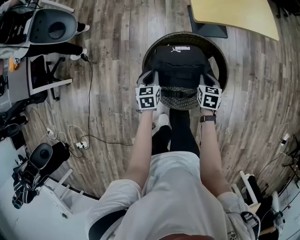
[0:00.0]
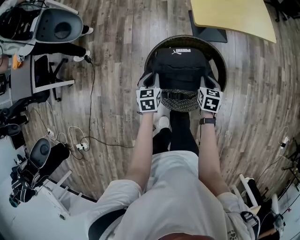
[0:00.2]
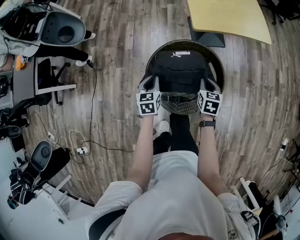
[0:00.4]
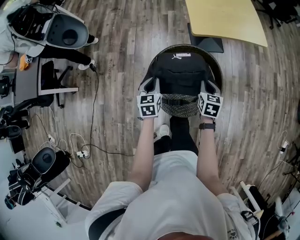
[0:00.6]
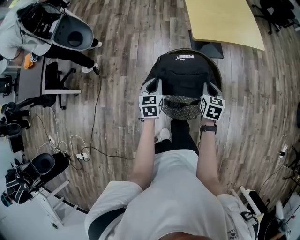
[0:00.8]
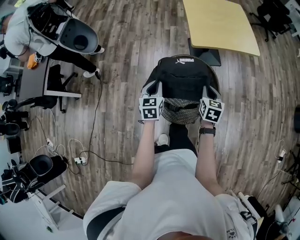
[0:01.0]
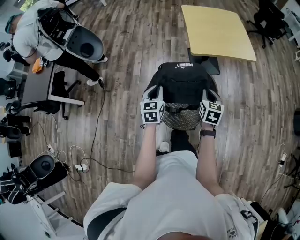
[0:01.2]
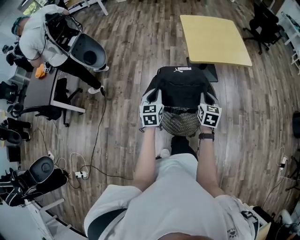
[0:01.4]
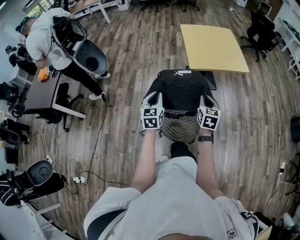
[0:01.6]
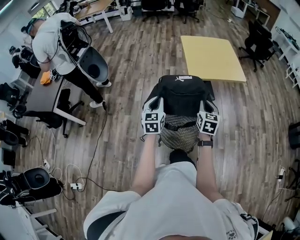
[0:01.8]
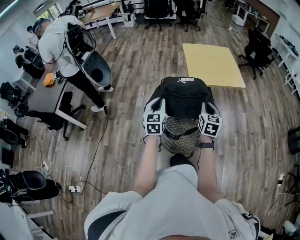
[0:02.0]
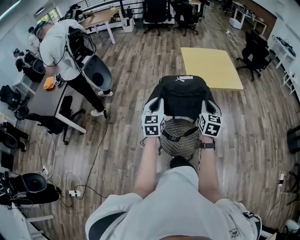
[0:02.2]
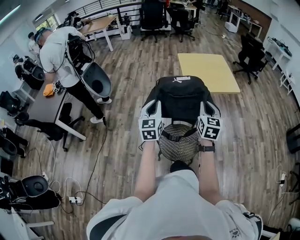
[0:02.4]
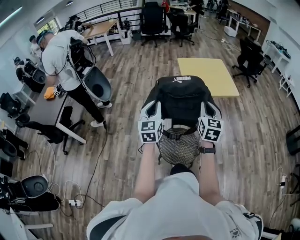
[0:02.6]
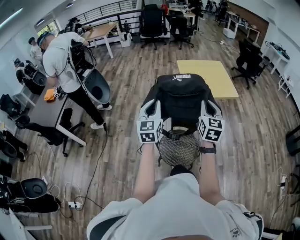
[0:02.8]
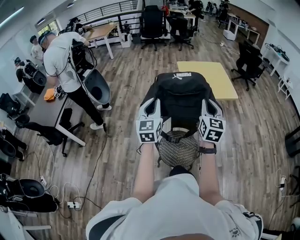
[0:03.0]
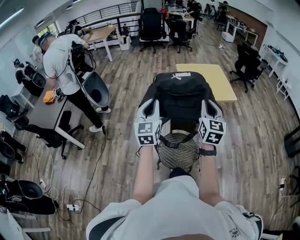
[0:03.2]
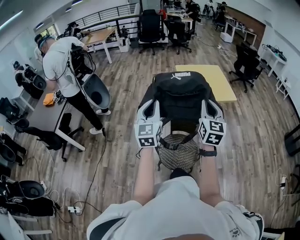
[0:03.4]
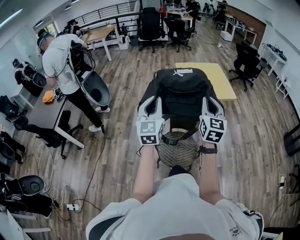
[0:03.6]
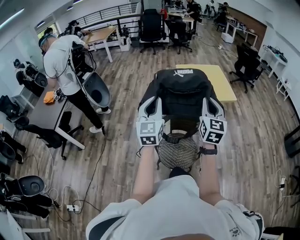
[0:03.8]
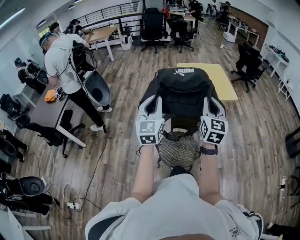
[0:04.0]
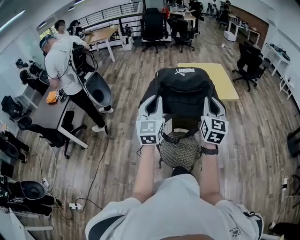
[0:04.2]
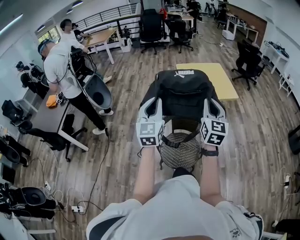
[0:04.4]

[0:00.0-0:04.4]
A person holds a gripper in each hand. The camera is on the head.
0:00.0 to 0:01.4: Both grippers travel together upward, some 25 cm. The right gripper changes its angle by roughly 20 degrees; the left gripper swivels about 20 degrees.
0:01.4 to 0:03.0: Both grippers travel together upward, approximately 25 cm. The left gripper turns by about 30 degrees, while the right gripper rotates approximately 30 degrees.
0:03.0 to 0:04.4: The left gripper moves approximately 5 cm.

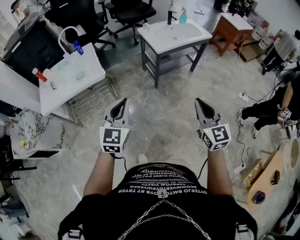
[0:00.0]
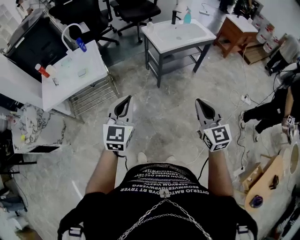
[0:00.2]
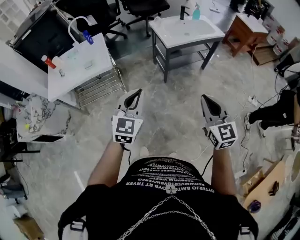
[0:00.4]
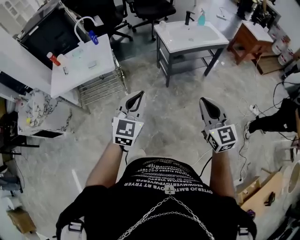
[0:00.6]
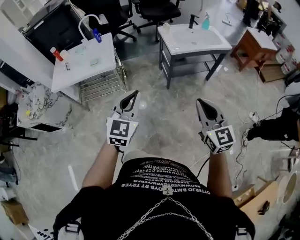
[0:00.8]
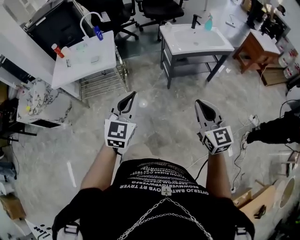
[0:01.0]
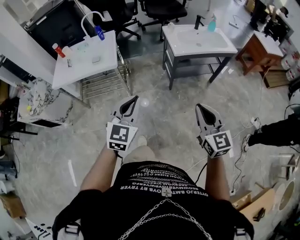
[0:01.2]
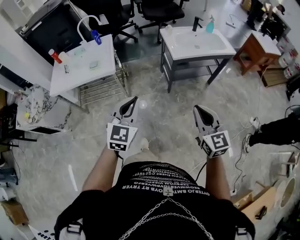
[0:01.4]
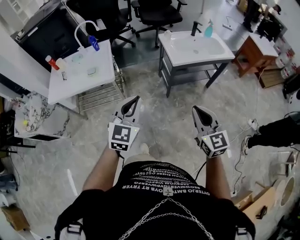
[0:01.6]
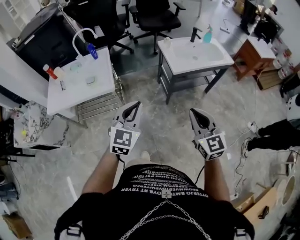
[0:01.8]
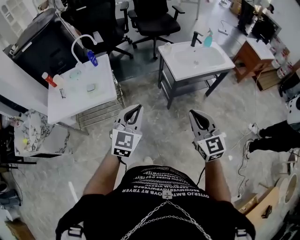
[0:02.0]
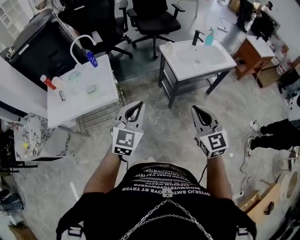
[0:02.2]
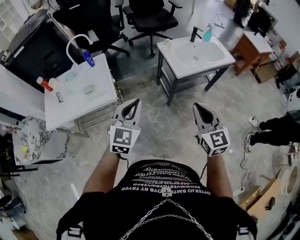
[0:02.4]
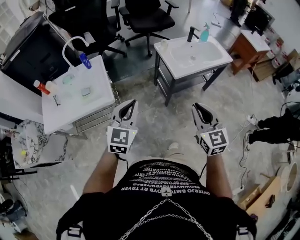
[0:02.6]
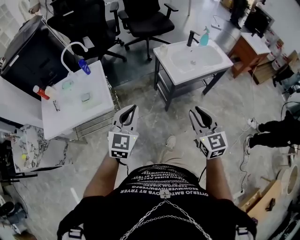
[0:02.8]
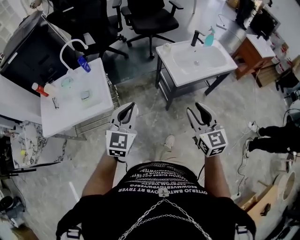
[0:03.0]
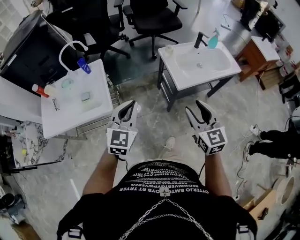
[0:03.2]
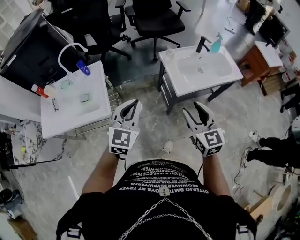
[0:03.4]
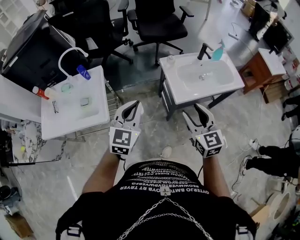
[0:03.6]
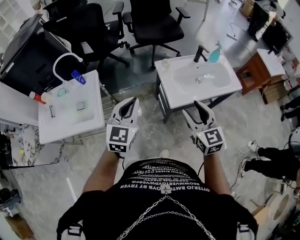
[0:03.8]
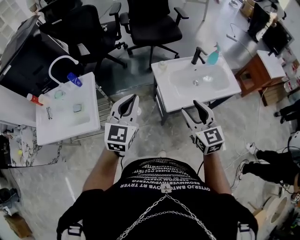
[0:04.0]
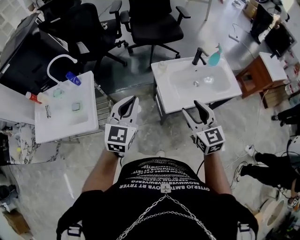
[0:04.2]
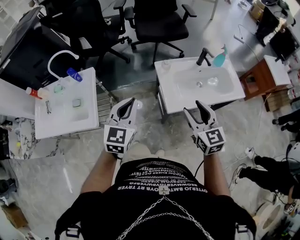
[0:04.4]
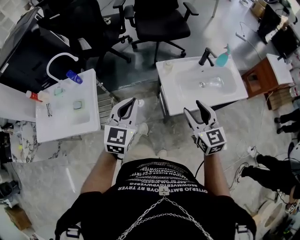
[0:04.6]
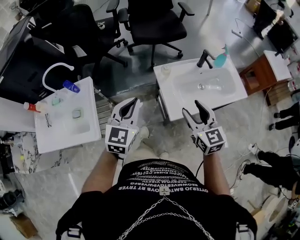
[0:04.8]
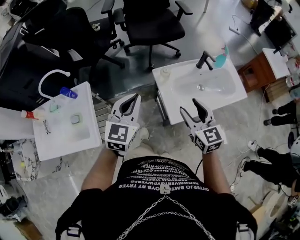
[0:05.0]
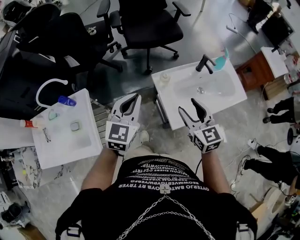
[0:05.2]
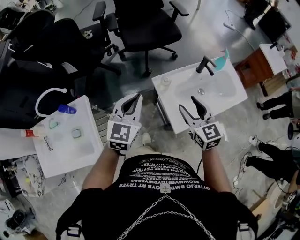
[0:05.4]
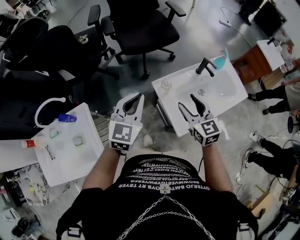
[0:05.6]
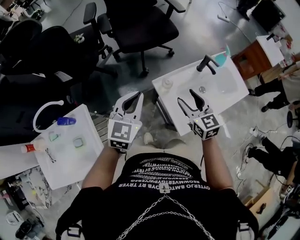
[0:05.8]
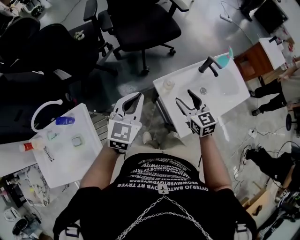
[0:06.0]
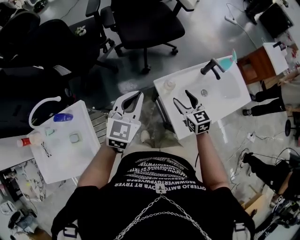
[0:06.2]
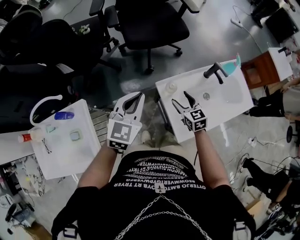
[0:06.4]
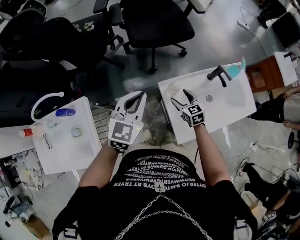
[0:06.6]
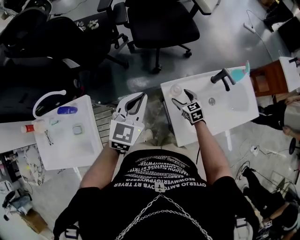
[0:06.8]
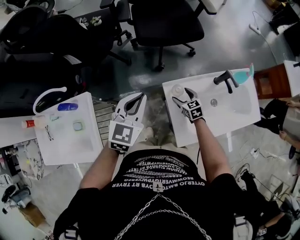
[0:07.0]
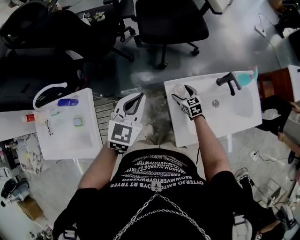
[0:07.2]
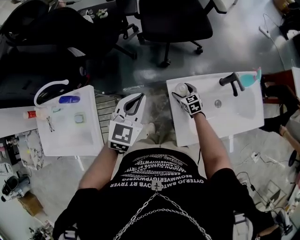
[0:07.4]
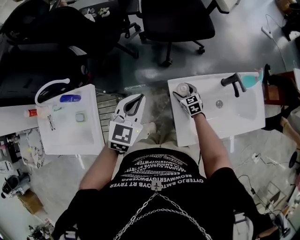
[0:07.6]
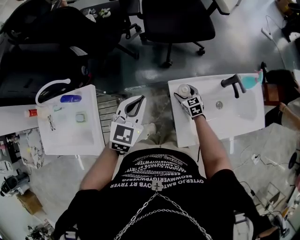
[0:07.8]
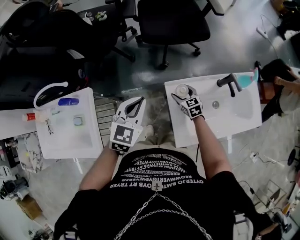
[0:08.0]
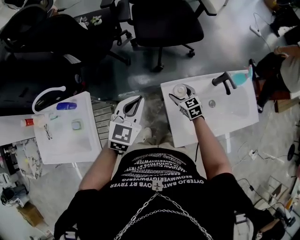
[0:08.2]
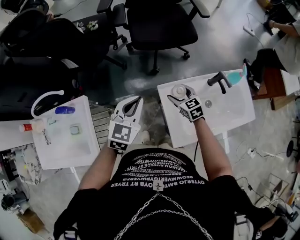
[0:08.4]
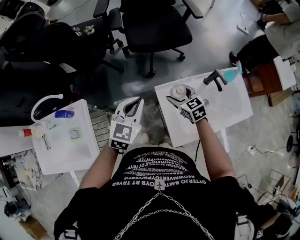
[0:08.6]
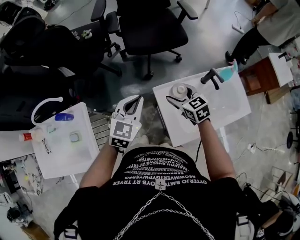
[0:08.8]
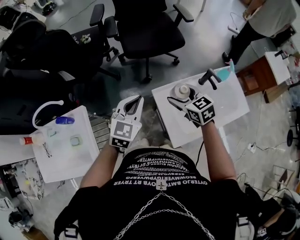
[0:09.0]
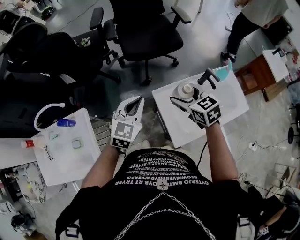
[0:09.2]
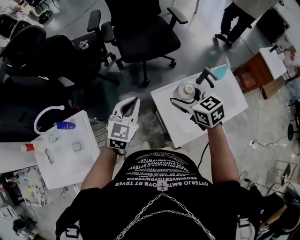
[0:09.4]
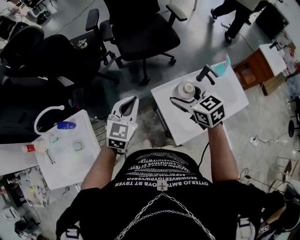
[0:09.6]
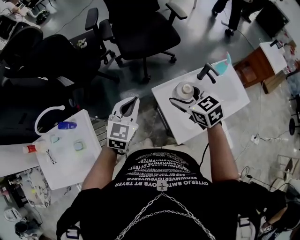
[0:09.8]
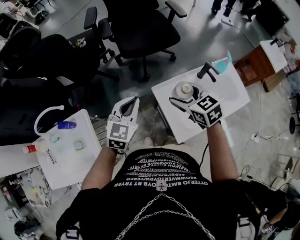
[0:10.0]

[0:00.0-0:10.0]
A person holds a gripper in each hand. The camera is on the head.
0:00.0 to 0:01.4: The left gripper moves to the right, about 10 cm. Meanwhile the right gripper travels forward by approximately 10 cm.
0:01.4 to 0:02.8: The left gripper is displaced forward by approximately 25 cm; the right gripper heads forward and to the left, covering approximately 25 cm.
0:02.8 to 0:04.2: The two grippers go about 30 cm forward and to the right.
0:04.2 to 0:05.8: Both grippers move forward, about 30 cm.
0:05.8 to 0:07.2: The left gripper moves forward and downward, approximately 10 cm; the right gripper travels downward and forward by roughly 30 cm, and rotates roughly 30 degrees.
0:07.2 to 0:08.6: The right gripper is displaced upward by approximately 15 cm.
0:08.6 to 0:10.0: The right gripper shifts some 15 cm upward.

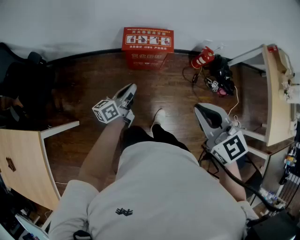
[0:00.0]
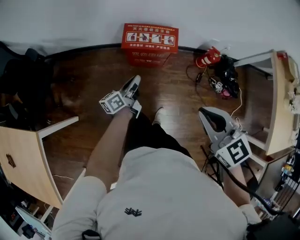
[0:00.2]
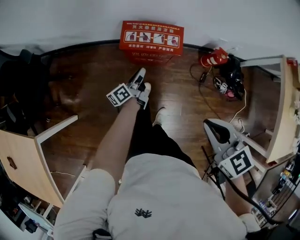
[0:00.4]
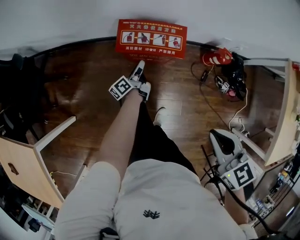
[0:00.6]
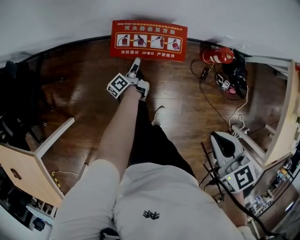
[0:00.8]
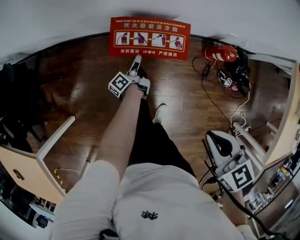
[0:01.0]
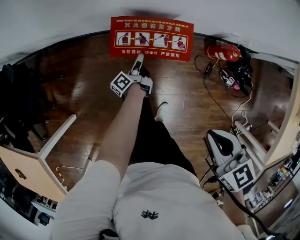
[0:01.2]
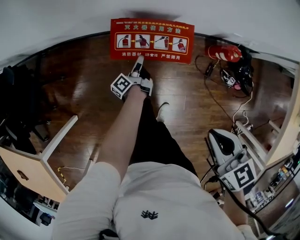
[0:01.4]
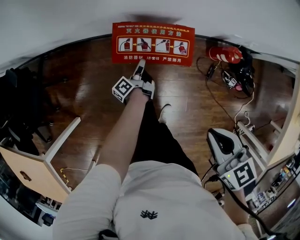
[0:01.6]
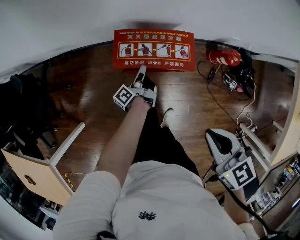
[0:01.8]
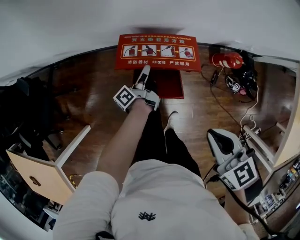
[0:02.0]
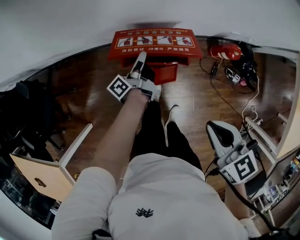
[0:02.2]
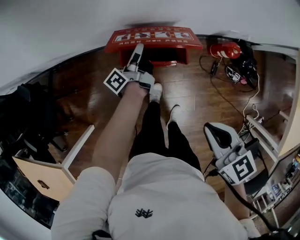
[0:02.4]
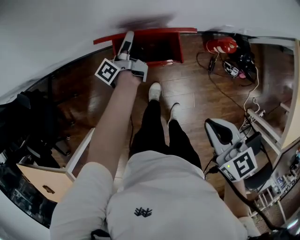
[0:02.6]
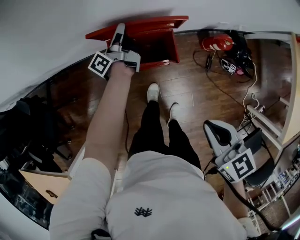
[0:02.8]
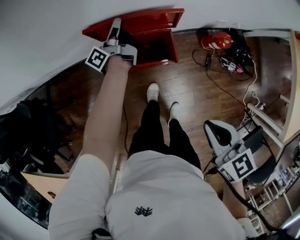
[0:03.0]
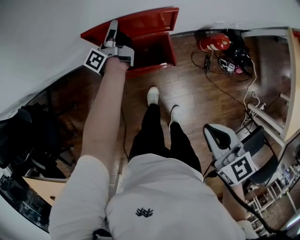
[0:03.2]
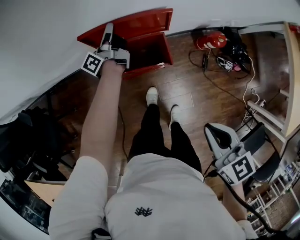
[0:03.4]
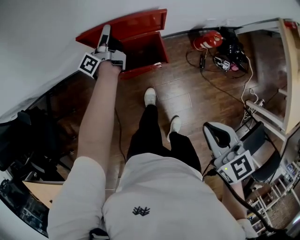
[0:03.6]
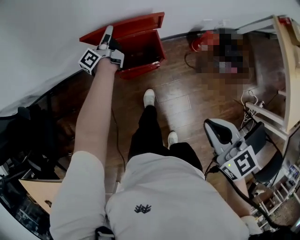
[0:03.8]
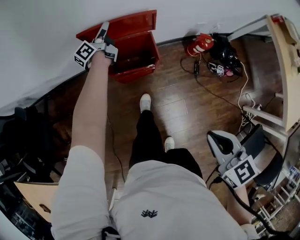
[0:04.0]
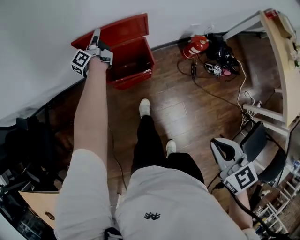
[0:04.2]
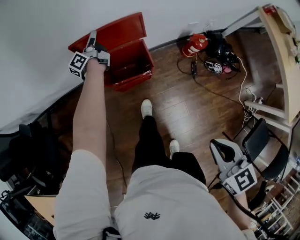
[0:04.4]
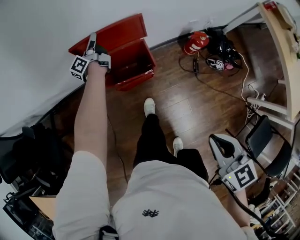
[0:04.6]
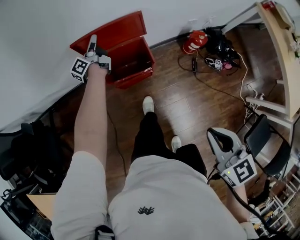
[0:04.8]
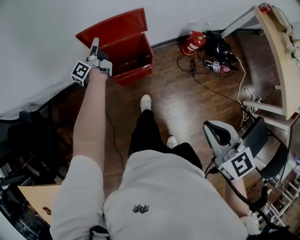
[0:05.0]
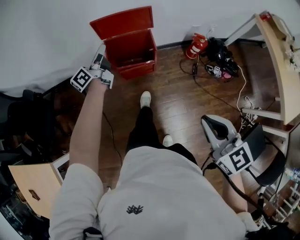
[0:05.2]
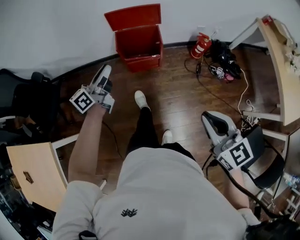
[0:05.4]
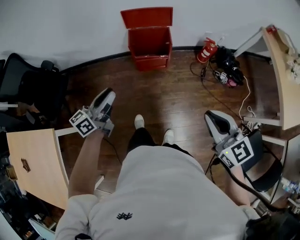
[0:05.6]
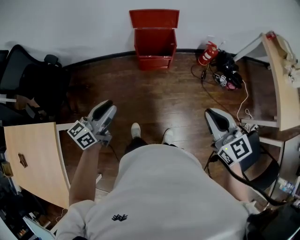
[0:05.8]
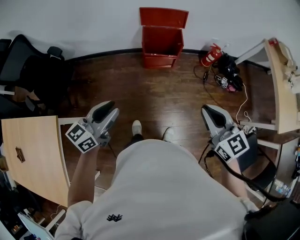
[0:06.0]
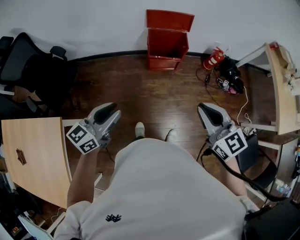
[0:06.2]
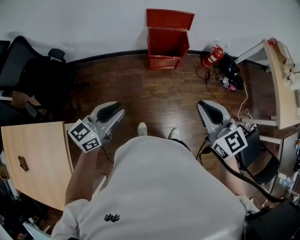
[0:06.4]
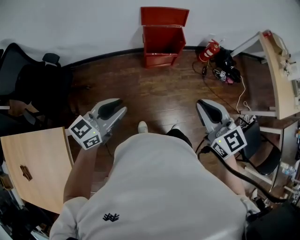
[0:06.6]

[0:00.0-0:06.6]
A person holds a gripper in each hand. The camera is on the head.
0:00.0 to 0:01.6: The left gripper goes some 35 cm downward and forward, rotates about 50 degrees, and opens its fingers, while the right gripper shifts approximately 20 cm forward, downward and to the right, and rotates some 30 degrees.
0:01.6 to 0:03.2: The left gripper heads forward and upward, covering about 30 cm, and turns by about 30 degrees.
0:03.2 to 0:05.0: The right gripper heads backward, covering approximately 15 cm; the left gripper is displaced backward by approximately 5 cm, and opens up.
0:05.0 to 0:06.6: The right gripper goes some 25 cm to the left, backward and upward. The left gripper is displaced backward by some 60 cm, and rotates around the line of its fingers by some 50 degrees, clockwise from behind.

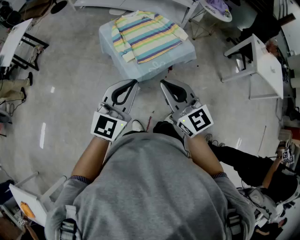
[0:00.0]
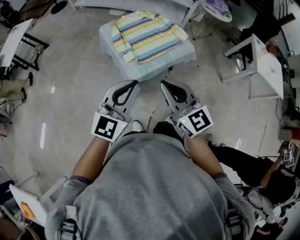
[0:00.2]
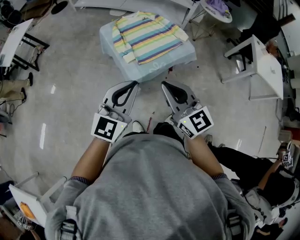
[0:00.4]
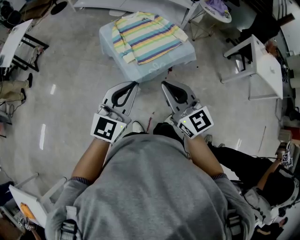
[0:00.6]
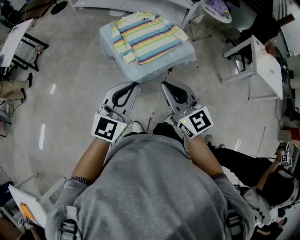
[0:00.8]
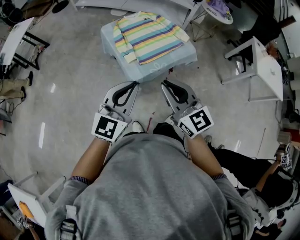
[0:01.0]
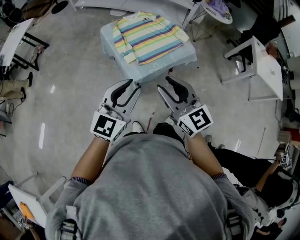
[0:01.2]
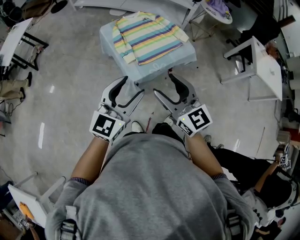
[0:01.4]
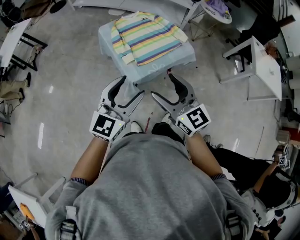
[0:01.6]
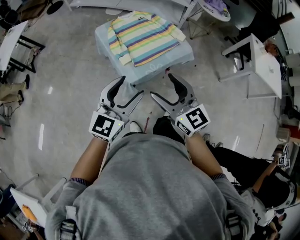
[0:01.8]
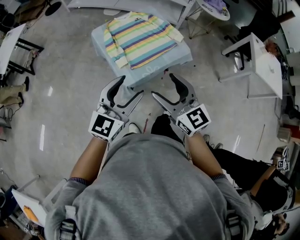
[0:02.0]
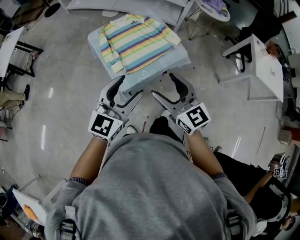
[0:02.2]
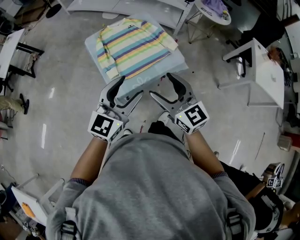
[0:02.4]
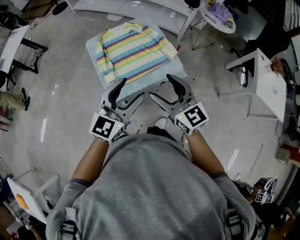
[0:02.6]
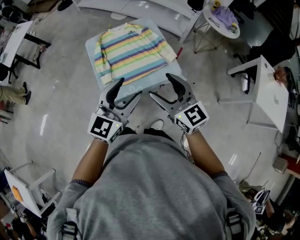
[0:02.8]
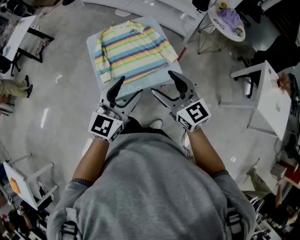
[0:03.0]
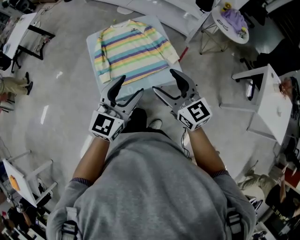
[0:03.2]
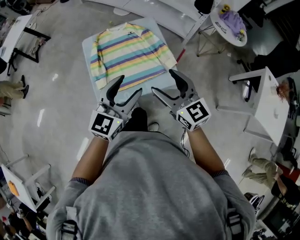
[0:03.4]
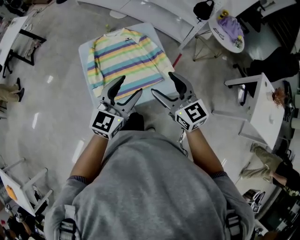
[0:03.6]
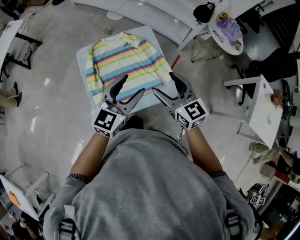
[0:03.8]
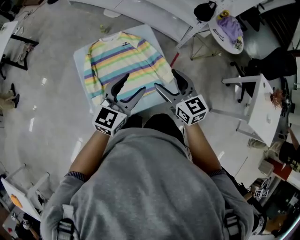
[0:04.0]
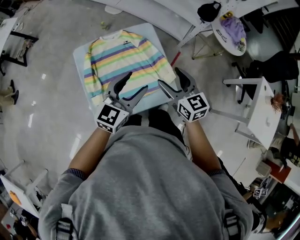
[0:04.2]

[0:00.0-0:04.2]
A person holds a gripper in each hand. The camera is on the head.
0:00.0 to 0:01.4: The right gripper opens its fingers, while the left gripper opens up.
0:01.4 to 0:02.8: The grippers both shift to the right and forward by about 30 cm.
0:02.8 to 0:04.2: Both grippers move forward, about 25 cm.
